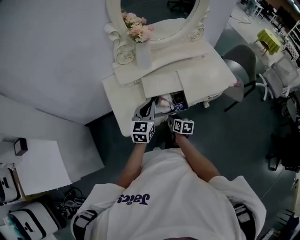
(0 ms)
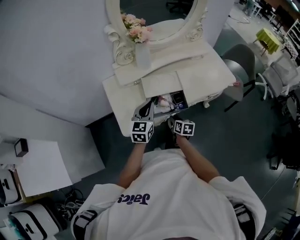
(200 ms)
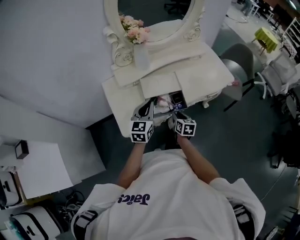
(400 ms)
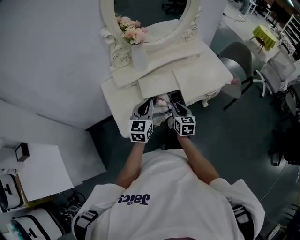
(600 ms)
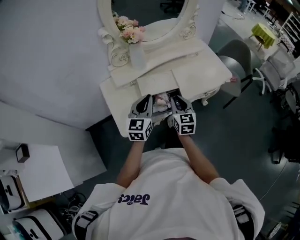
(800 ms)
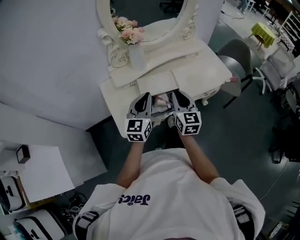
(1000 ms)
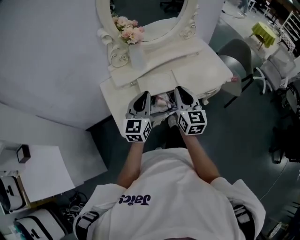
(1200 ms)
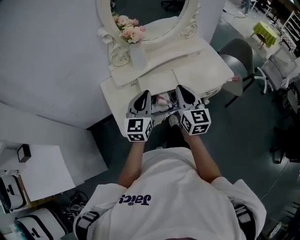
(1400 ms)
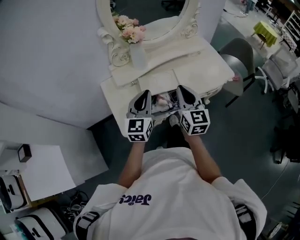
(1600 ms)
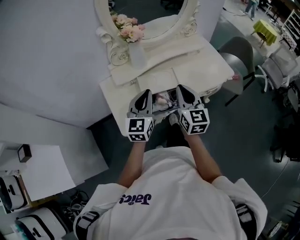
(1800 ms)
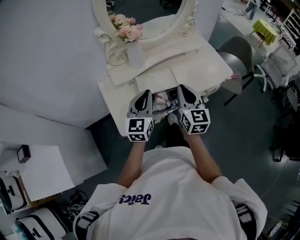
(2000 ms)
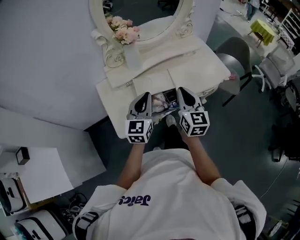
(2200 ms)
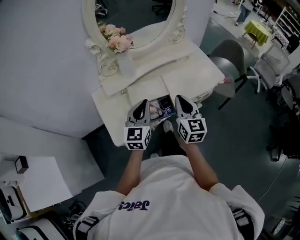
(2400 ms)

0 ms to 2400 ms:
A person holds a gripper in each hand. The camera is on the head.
0 ms to 1200 ms: The right gripper heads upward, covering roughly 30 cm, and points its fingers roughly 40 degrees further upward. Meanwhile the left gripper heads upward, covering some 10 cm.
1200 ms to 2400 ms: The grippers move only a little.

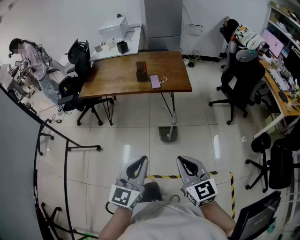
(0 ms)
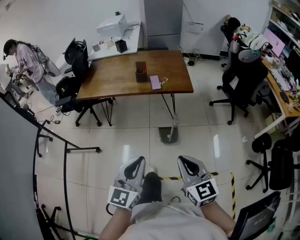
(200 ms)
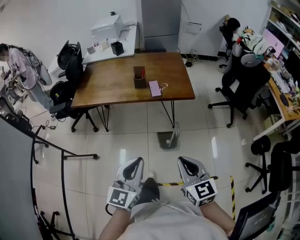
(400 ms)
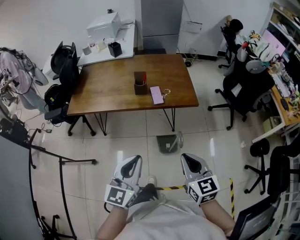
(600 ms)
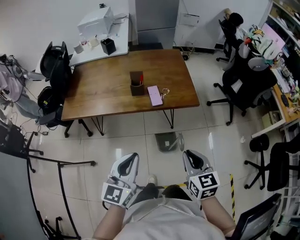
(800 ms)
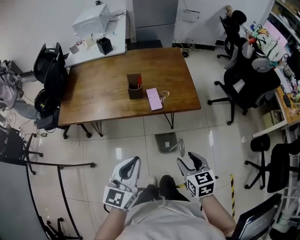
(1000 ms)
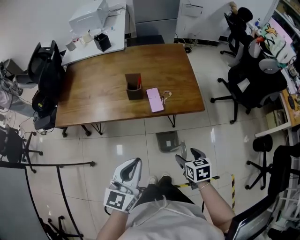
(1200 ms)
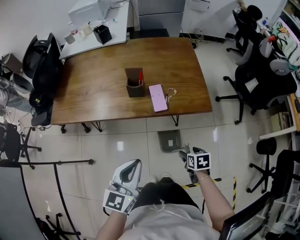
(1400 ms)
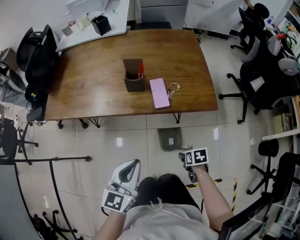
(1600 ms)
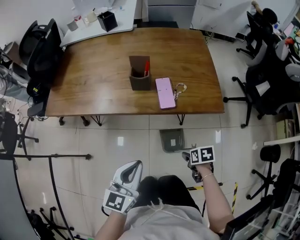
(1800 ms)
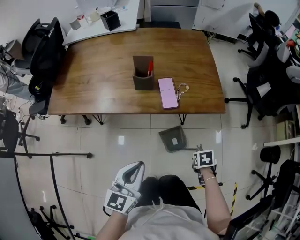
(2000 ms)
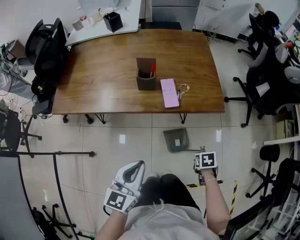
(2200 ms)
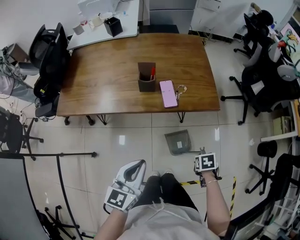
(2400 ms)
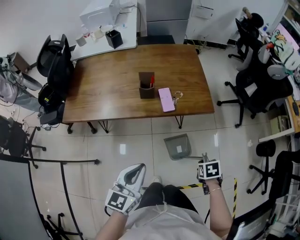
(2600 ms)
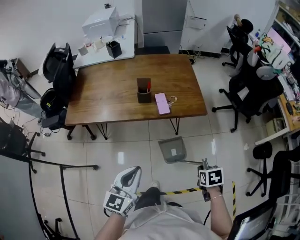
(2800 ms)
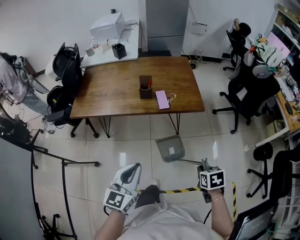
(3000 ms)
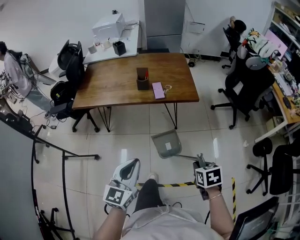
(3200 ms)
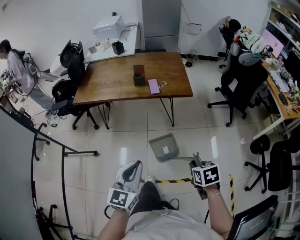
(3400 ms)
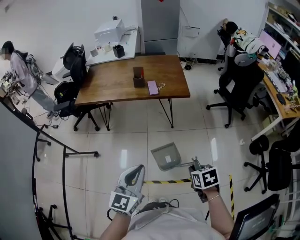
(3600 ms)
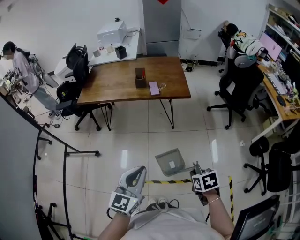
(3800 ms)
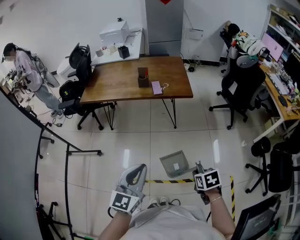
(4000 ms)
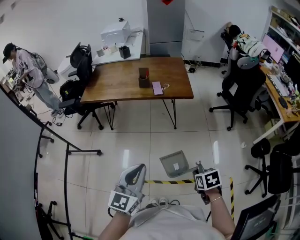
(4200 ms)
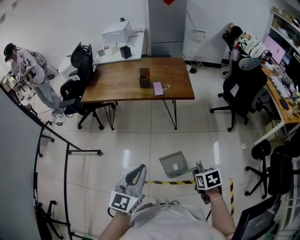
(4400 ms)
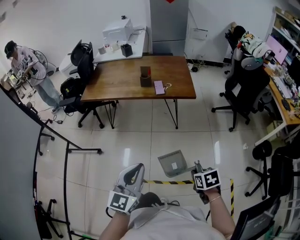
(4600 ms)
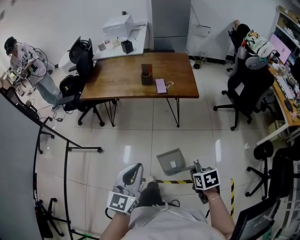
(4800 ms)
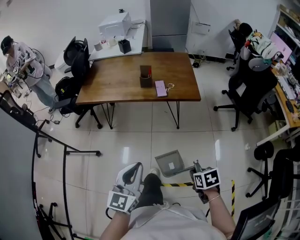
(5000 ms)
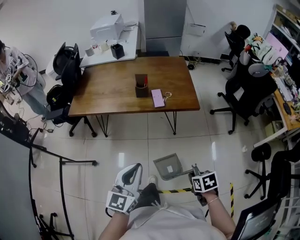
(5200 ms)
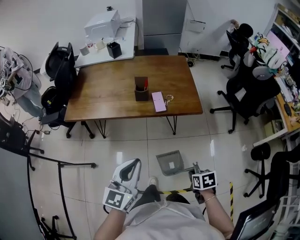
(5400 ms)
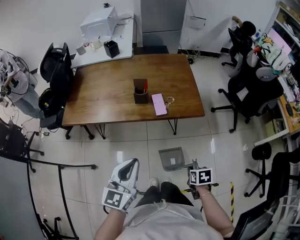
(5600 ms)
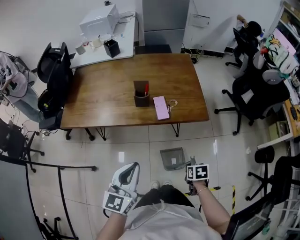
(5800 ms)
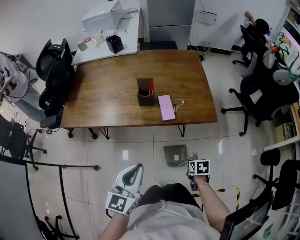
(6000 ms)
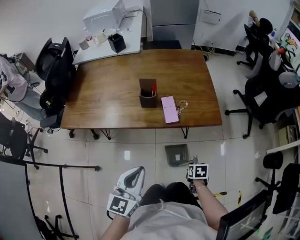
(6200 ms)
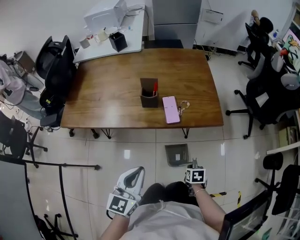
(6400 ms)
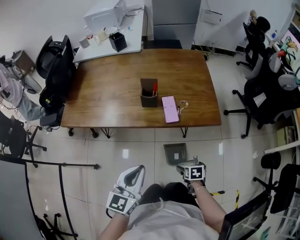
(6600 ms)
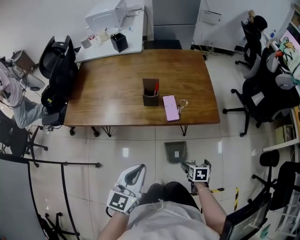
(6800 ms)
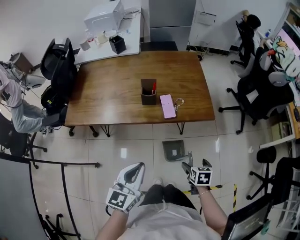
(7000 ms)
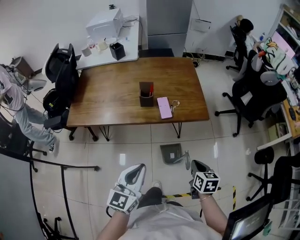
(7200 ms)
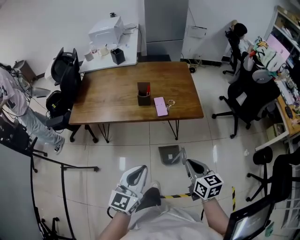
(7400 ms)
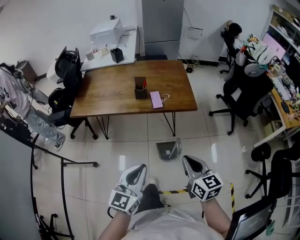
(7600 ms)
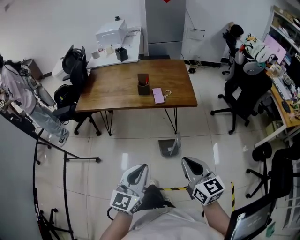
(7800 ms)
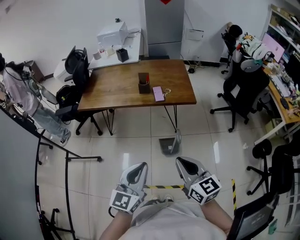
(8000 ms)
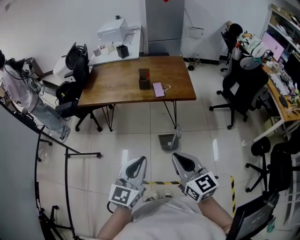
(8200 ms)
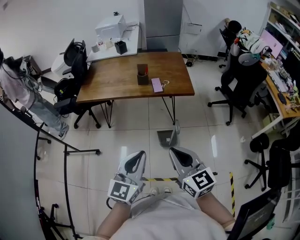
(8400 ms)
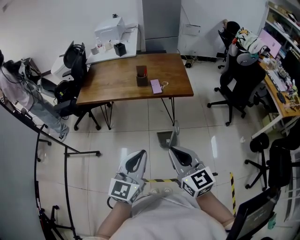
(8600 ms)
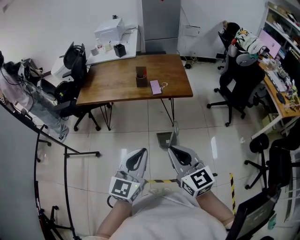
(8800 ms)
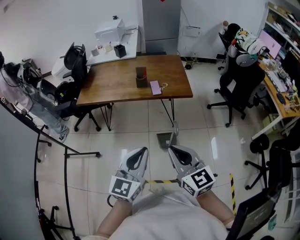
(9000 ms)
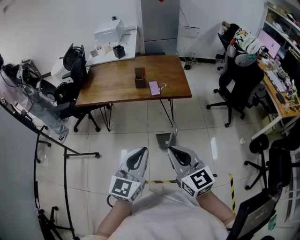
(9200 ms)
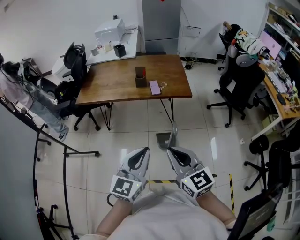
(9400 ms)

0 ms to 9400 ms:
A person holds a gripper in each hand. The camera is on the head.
0 ms to 1600 ms: The left gripper shifts some 40 cm forward and downward. Meanwhile the right gripper heads downward and forward, covering approximately 60 cm, tips its fingers downward by roughly 60 degrees, and opens.
1600 ms to 3200 ms: The left gripper changes place by about 25 cm, while the right gripper moves upward, approximately 25 cm, changes its angle by about 20 degrees, and closes up.
3200 ms to 4800 ms: Both grippers move backward, roughly 10 cm.
4800 ms to 6200 ms: The left gripper is displaced forward by some 35 cm, while the right gripper is displaced forward and downward by some 40 cm.
6200 ms to 7800 ms: The left gripper is displaced backward and upward by about 30 cm. Meanwhile the right gripper moves upward and backward, some 50 cm, tips its fingers upward by approximately 60 degrees, and opens, then closes once more.
7800 ms to 9400 ms: The right gripper moves backward, roughly 5 cm. The left gripper moves some 5 cm.

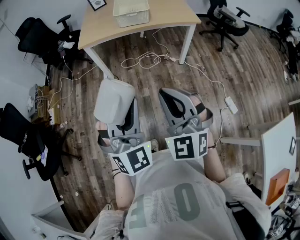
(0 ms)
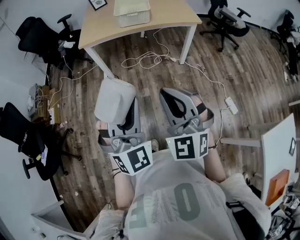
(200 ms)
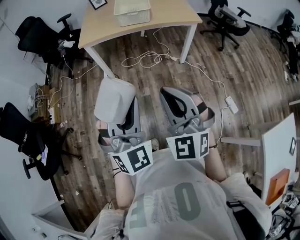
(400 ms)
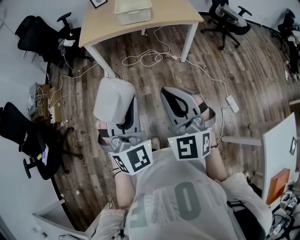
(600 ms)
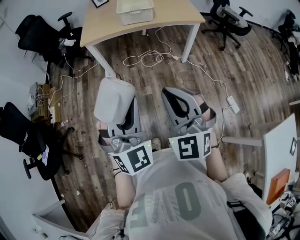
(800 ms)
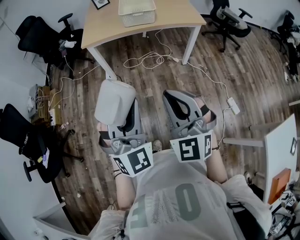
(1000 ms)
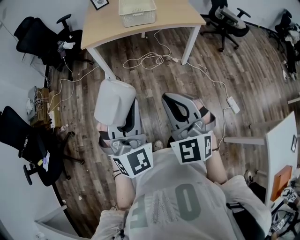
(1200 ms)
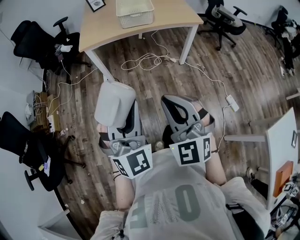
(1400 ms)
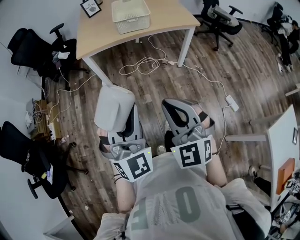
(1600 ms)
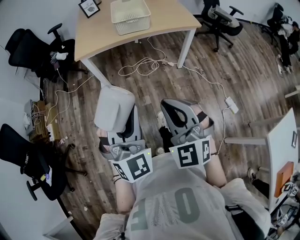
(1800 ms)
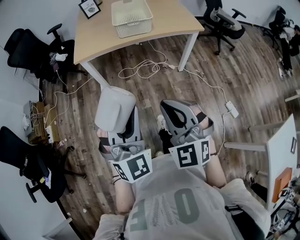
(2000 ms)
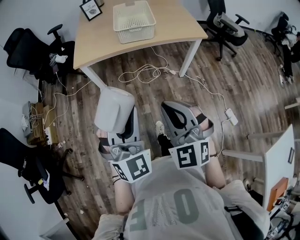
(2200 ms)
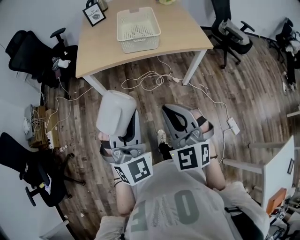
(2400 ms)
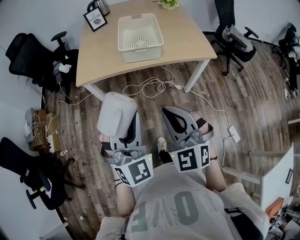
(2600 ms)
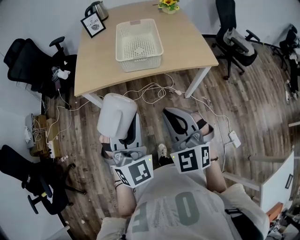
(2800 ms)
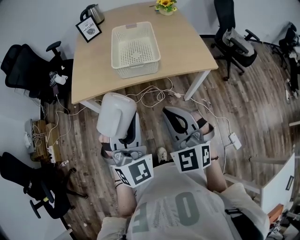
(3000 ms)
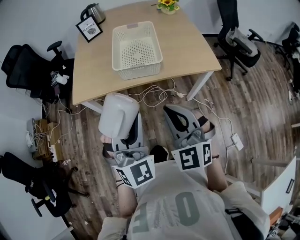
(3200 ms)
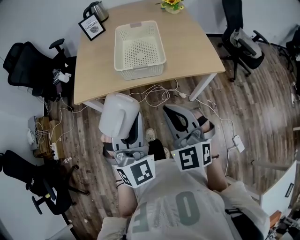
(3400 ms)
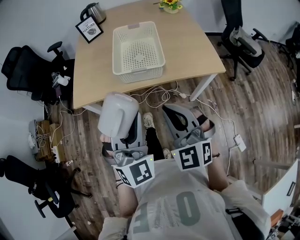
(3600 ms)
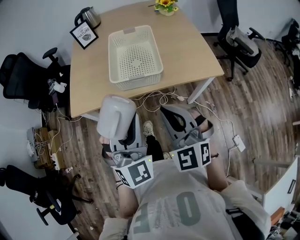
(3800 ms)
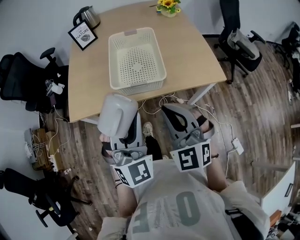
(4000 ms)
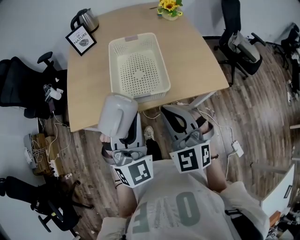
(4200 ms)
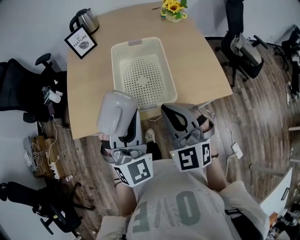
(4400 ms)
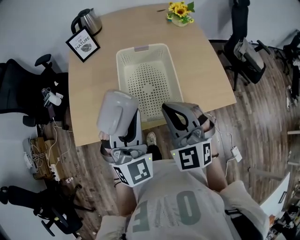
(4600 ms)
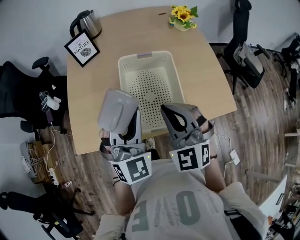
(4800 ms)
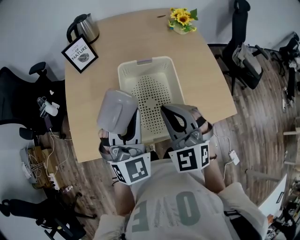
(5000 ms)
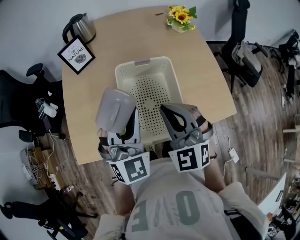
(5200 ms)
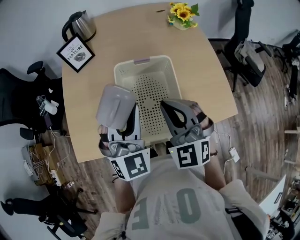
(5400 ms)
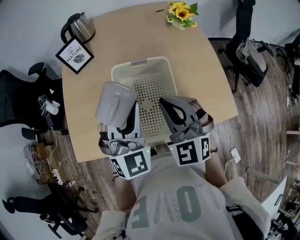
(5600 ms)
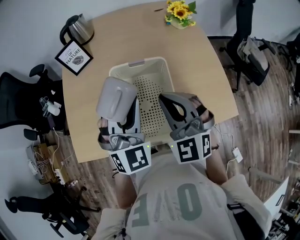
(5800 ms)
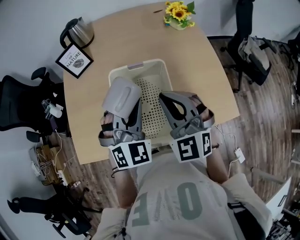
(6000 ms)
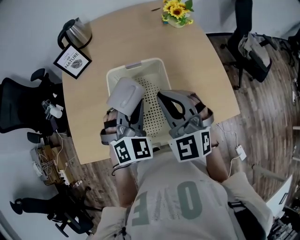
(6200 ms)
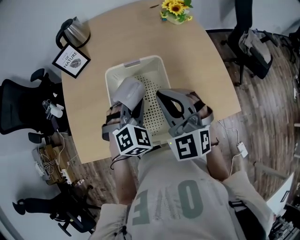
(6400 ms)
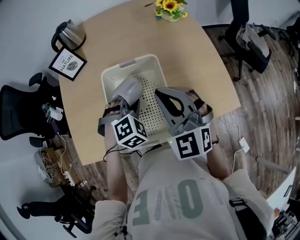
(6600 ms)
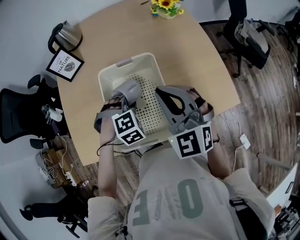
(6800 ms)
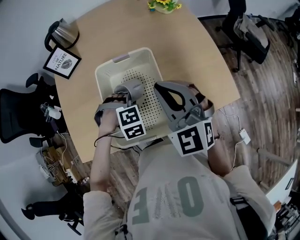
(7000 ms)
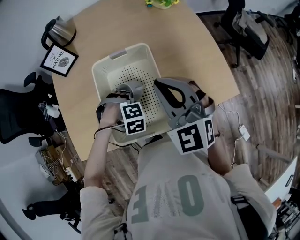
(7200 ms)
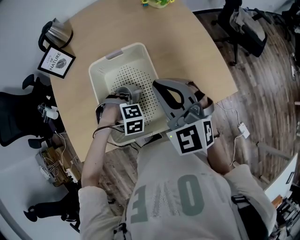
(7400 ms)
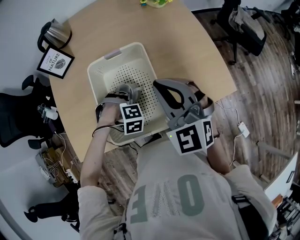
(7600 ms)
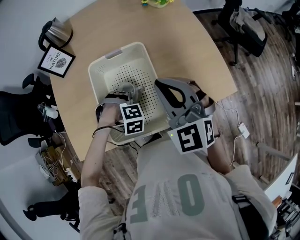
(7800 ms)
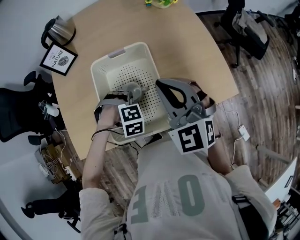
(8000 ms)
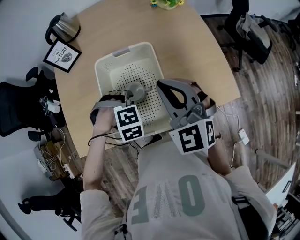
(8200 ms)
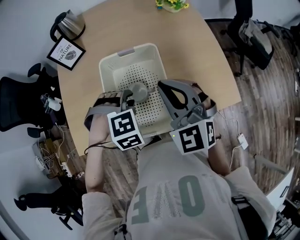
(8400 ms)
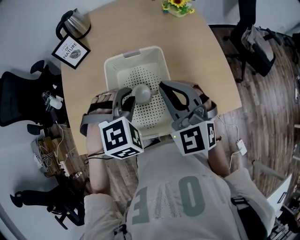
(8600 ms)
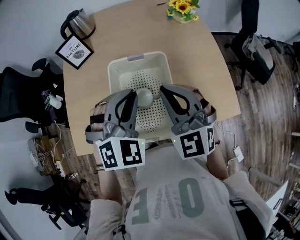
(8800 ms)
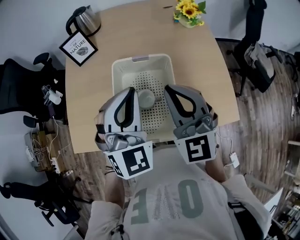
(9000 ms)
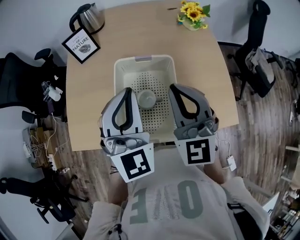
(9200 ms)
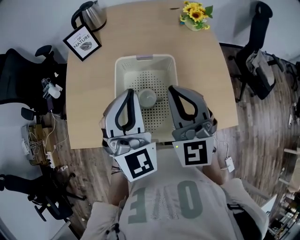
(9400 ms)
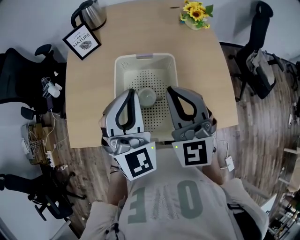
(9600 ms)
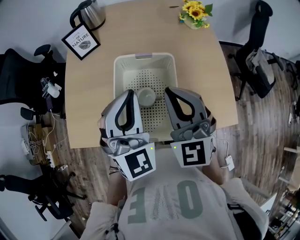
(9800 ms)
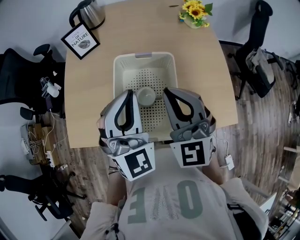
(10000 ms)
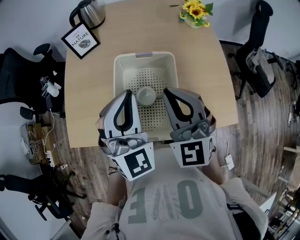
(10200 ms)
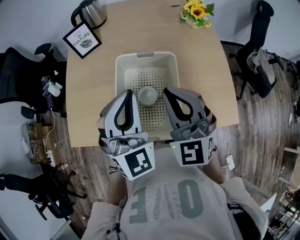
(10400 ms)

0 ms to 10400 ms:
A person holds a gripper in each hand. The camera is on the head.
0 ms to 1400 ms: The grippers both shift to the left by about 5 cm.
1400 ms to 3000 ms: Both grippers move forward, some 35 cm.
3000 ms to 4400 ms: Both grippers move forward, roughly 25 cm.
4400 ms to 6000 ms: Both grippers travel together forward, some 20 cm.
6000 ms to 7400 ms: The left gripper goes about 25 cm downward, and points its fingers roughly 60 degrees further downward.
7400 ms to 9000 ms: The left gripper heads upward, covering about 30 cm, and tips its fingers upward by roughly 70 degrees. The right gripper moves roughly 5 cm.
9000 ms to 10400 ms: The grippers stay close to where they were, moving slightly.

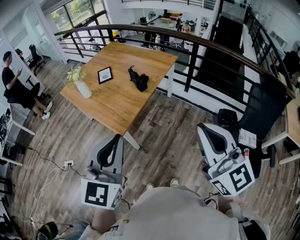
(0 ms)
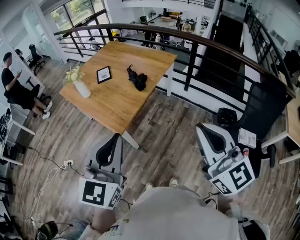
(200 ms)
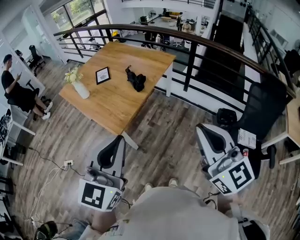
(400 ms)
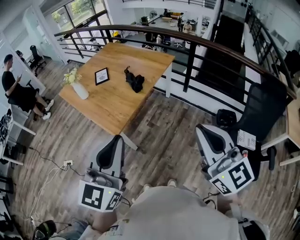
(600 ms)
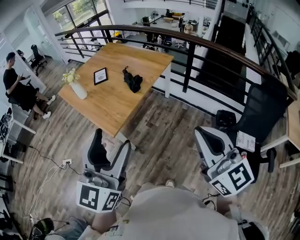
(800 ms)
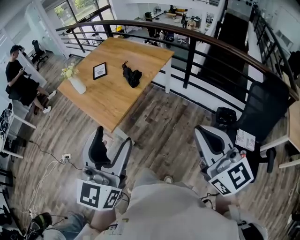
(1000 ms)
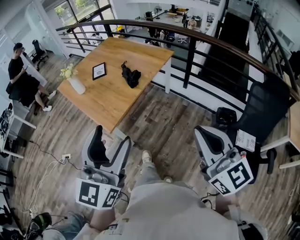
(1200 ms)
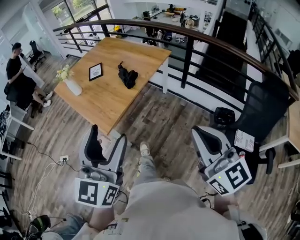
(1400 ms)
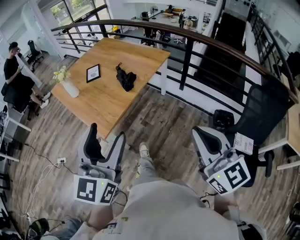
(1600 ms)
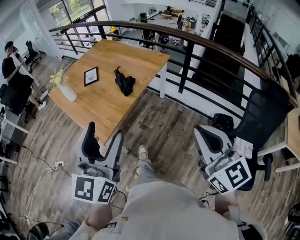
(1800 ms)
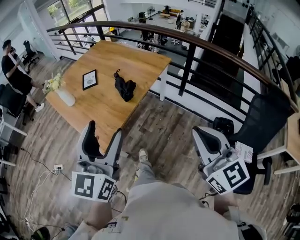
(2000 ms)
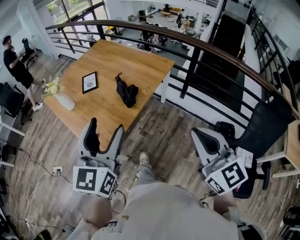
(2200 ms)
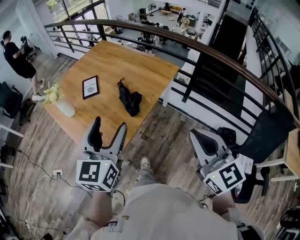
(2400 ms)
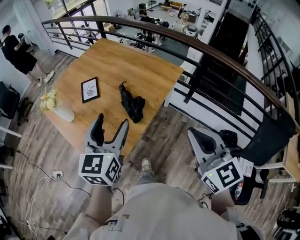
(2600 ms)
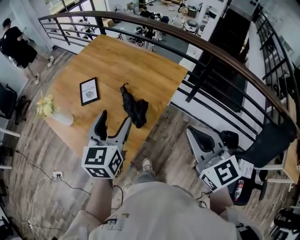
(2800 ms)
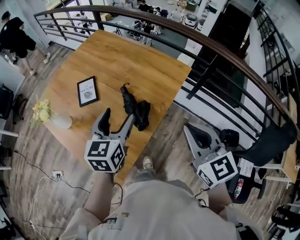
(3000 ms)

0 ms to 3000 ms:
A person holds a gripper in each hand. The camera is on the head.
0 ms to 1600 ms: The left gripper is displaced to the right and forward by some 10 cm, and opens up. The right gripper heads to the right, downward and forward, covering roughly 15 cm.
1600 ms to 3000 ms: The pair of grippers is taken forward, approximately 50 cm. The left gripper rotates roughly 30 degrees.
